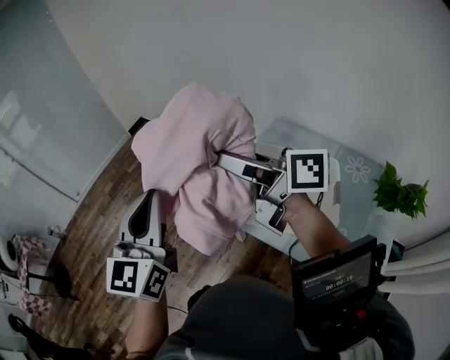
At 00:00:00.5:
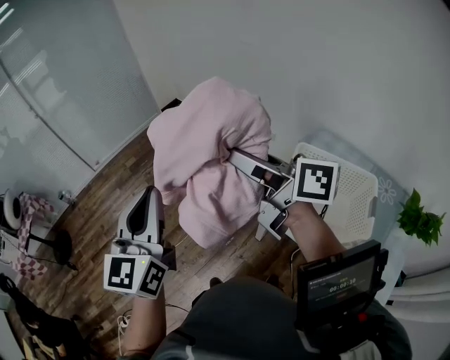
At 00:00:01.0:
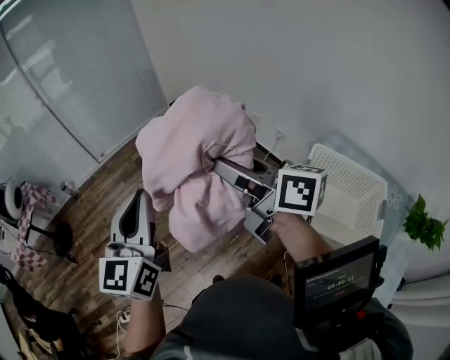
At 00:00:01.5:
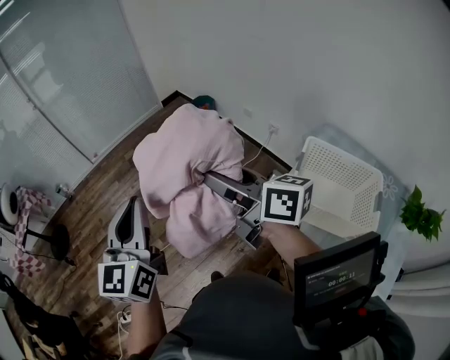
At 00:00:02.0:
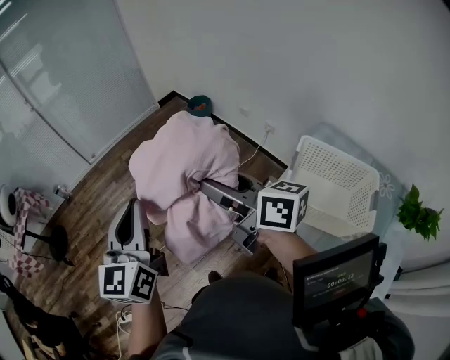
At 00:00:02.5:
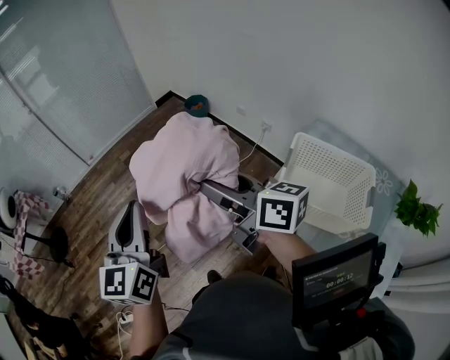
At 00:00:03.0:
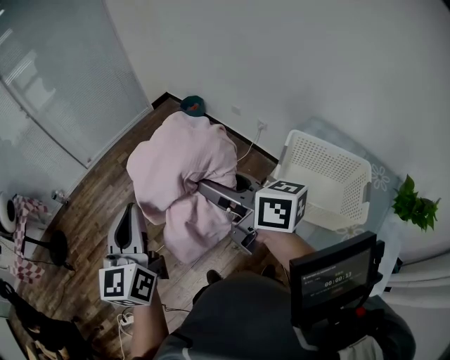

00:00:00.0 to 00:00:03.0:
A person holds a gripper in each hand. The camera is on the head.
00:00:00.0 to 00:00:01.5: Both grippers travel together to the left, approximately 25 cm.
00:00:01.5 to 00:00:03.0: Neither gripper changes place.

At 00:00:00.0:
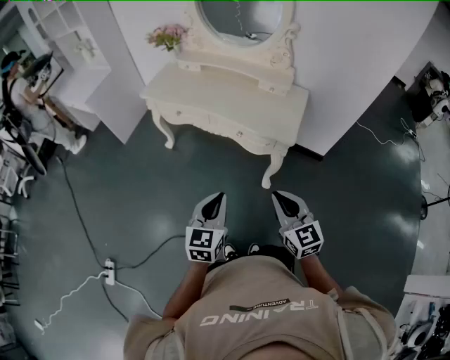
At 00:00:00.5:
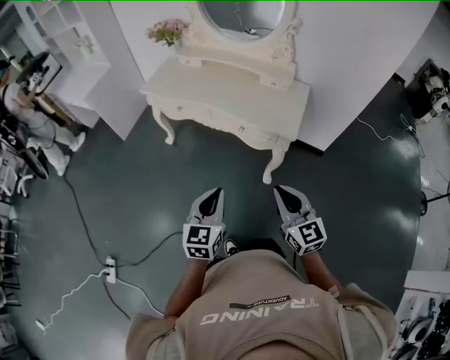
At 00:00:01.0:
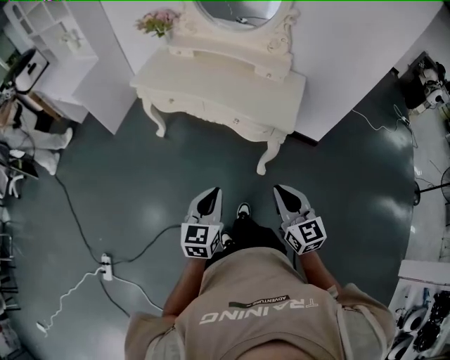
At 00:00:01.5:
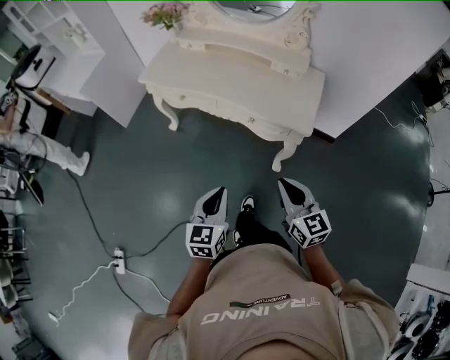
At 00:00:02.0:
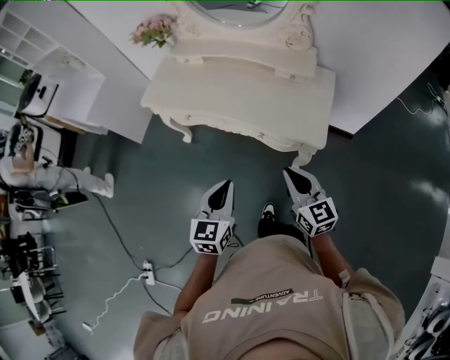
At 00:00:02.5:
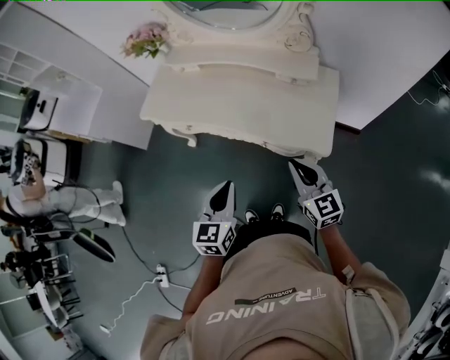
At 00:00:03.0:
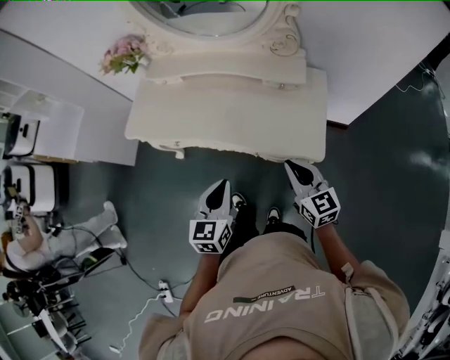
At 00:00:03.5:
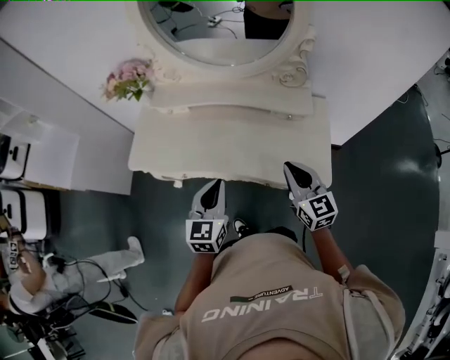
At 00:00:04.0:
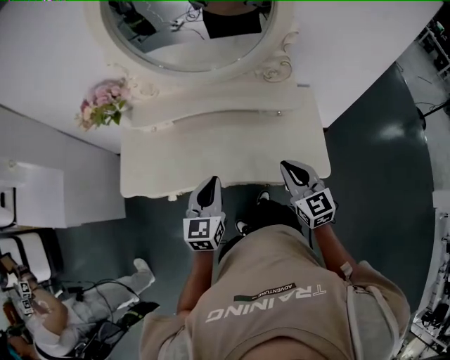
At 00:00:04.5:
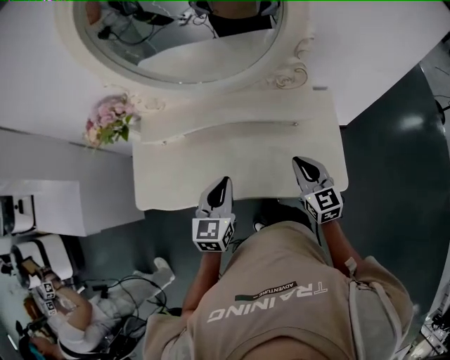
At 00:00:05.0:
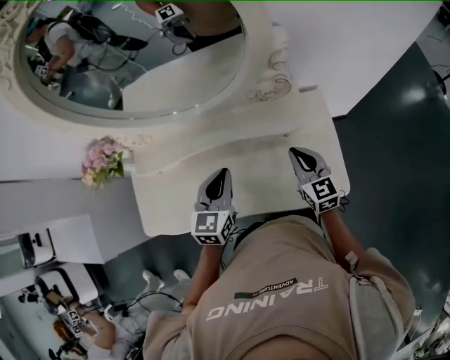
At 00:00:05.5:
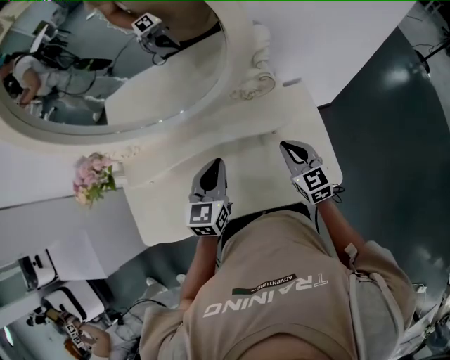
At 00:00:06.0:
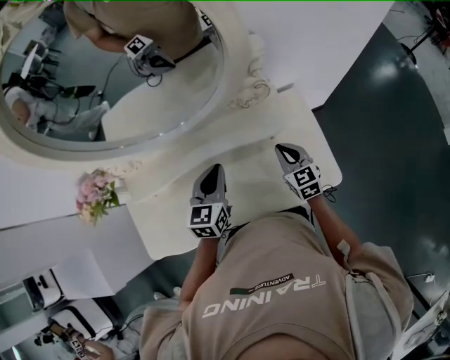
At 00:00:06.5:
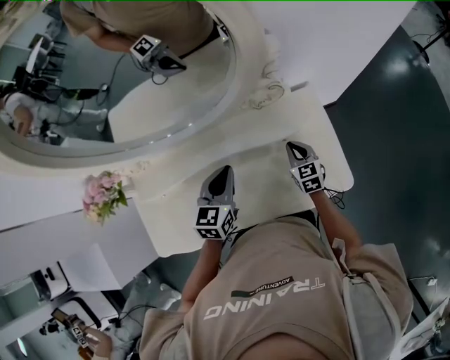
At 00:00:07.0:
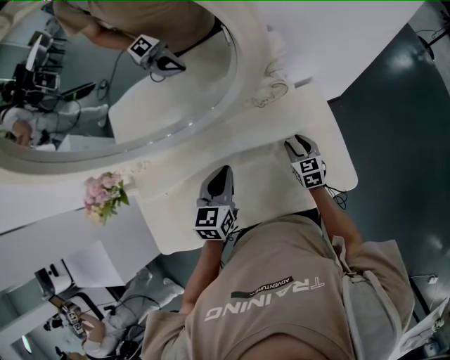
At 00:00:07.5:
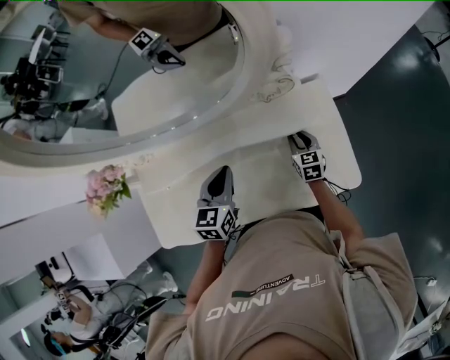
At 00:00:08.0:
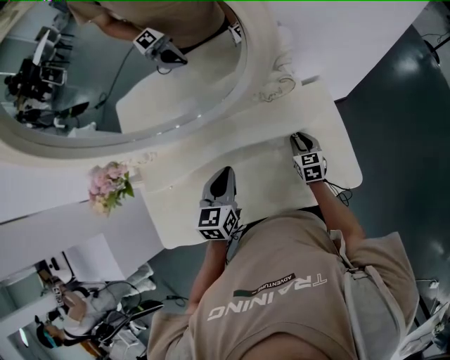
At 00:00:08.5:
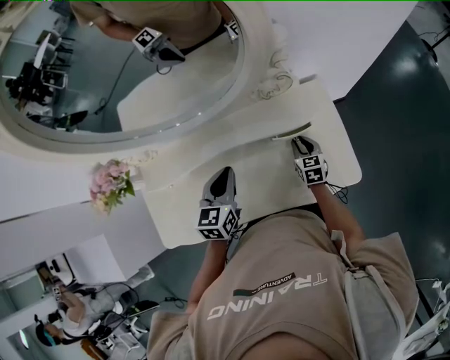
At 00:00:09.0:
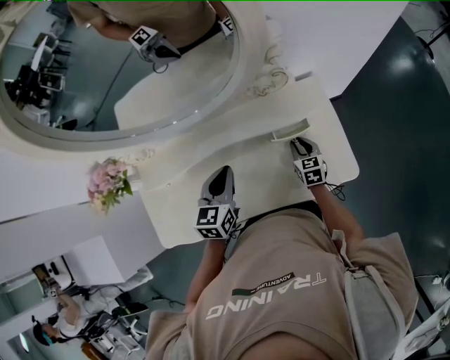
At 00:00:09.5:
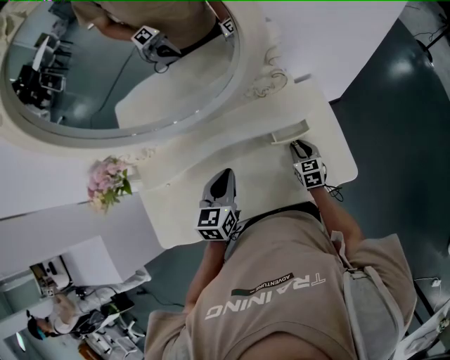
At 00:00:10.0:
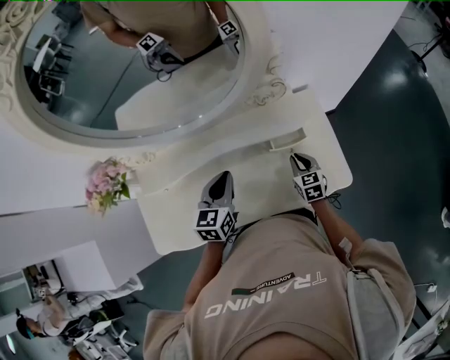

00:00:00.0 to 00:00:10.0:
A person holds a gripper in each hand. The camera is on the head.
00:00:00.0 to 00:00:02.0: Both grippers move forward, about 20 cm.
00:00:02.0 to 00:00:04.0: The two grippers go roughly 30 cm forward. The right gripper rotates about 20 degrees.
00:00:04.0 to 00:00:06.0: The right gripper shifts approximately 25 cm forward and downward. Meanwhile the left gripper travels forward by about 25 cm.
00:00:06.0 to 00:00:08.0: The right gripper heads downward, covering about 10 cm, and opens.
00:00:08.0 to 00:00:10.0: The right gripper moves backward, approximately 5 cm.

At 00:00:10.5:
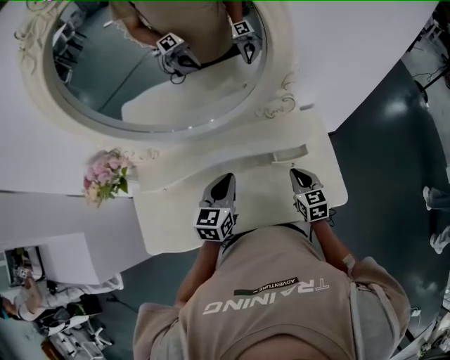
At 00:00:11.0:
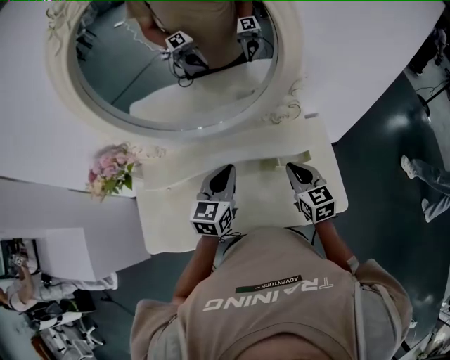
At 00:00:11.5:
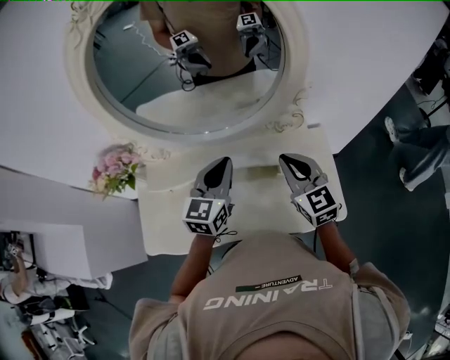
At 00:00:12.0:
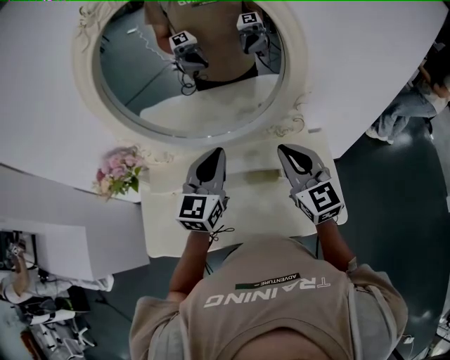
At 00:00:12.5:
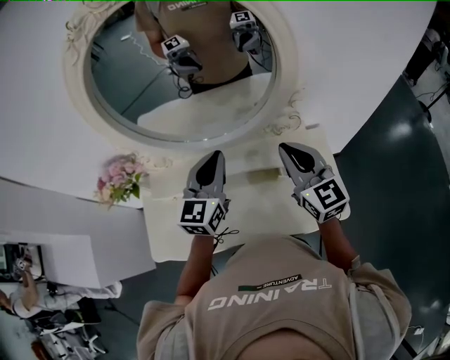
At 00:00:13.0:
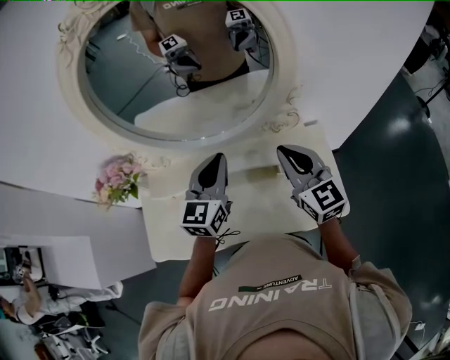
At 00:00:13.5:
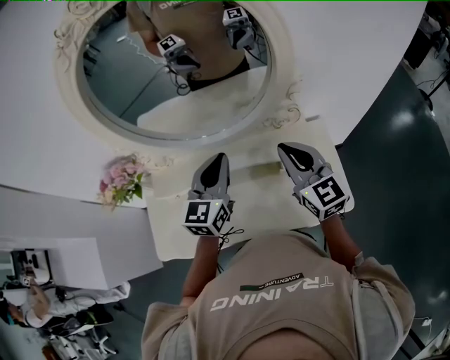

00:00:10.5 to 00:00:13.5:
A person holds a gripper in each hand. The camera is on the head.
00:00:10.5 to 00:00:12.0: The right gripper goes roughly 25 cm upward, and swivels some 30 degrees, while the left gripper goes some 15 cm upward, and turns by roughly 20 degrees.
00:00:12.0 to 00:00:13.5: The grippers move only a little.

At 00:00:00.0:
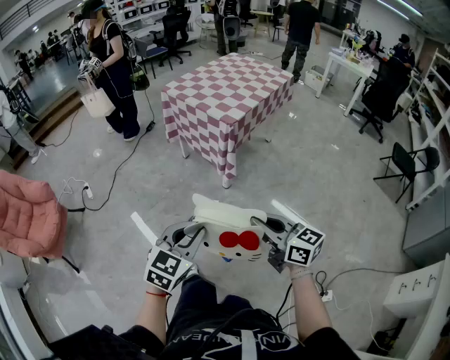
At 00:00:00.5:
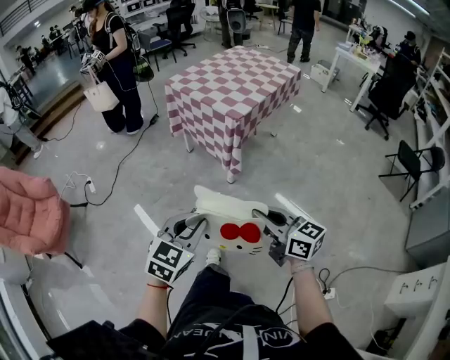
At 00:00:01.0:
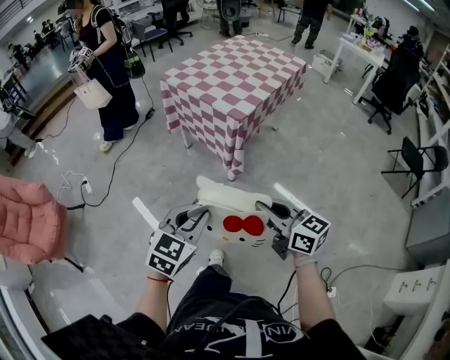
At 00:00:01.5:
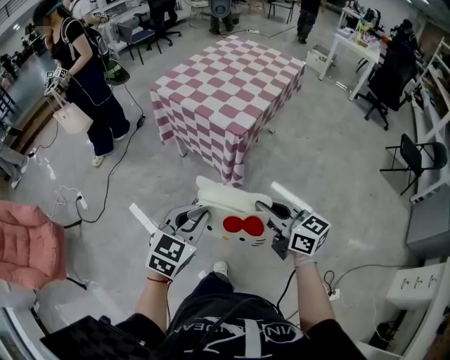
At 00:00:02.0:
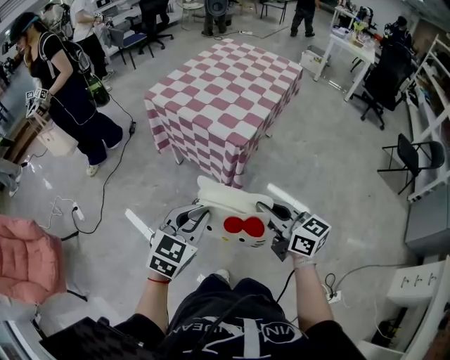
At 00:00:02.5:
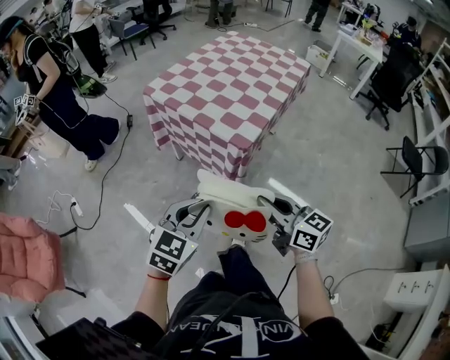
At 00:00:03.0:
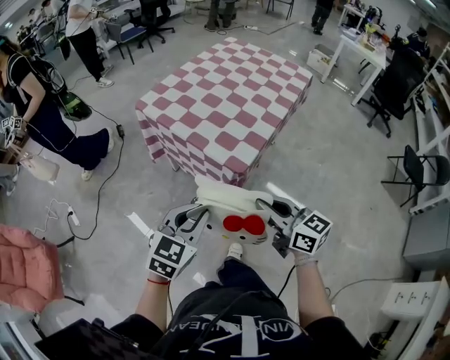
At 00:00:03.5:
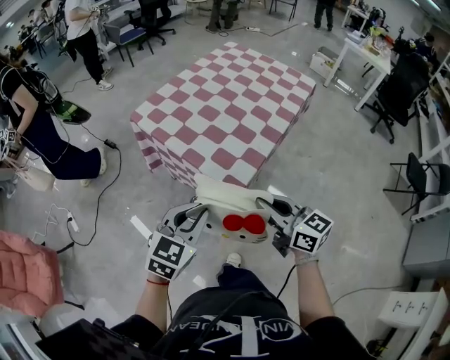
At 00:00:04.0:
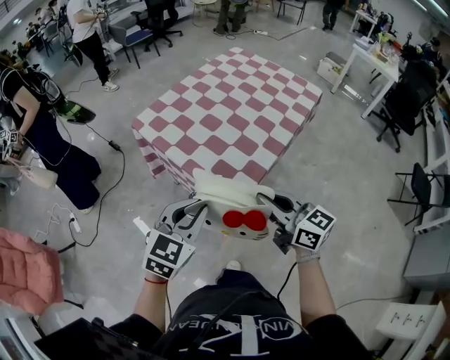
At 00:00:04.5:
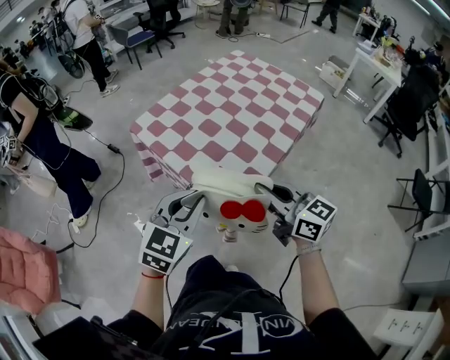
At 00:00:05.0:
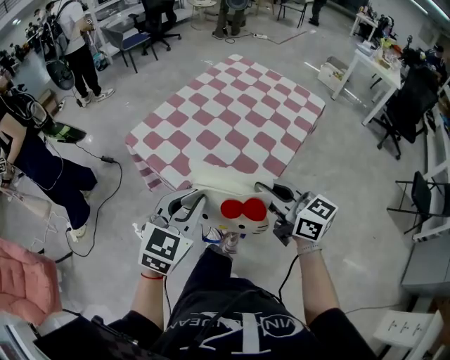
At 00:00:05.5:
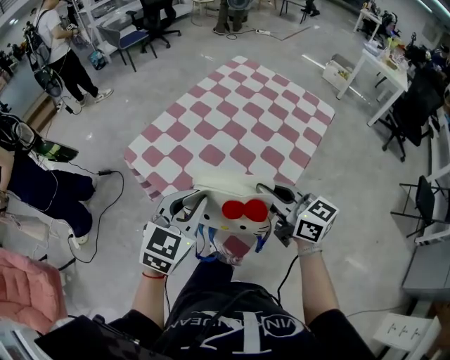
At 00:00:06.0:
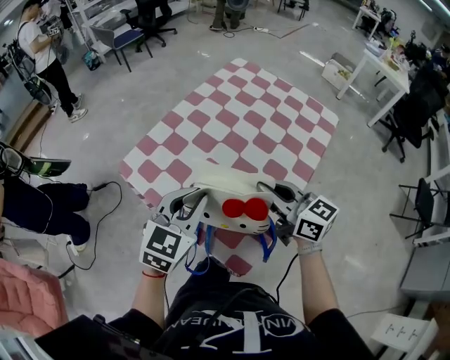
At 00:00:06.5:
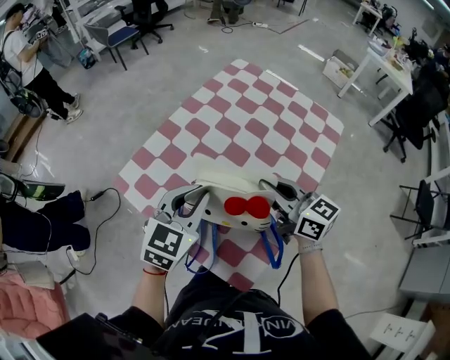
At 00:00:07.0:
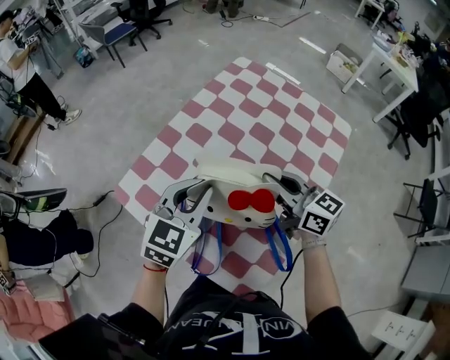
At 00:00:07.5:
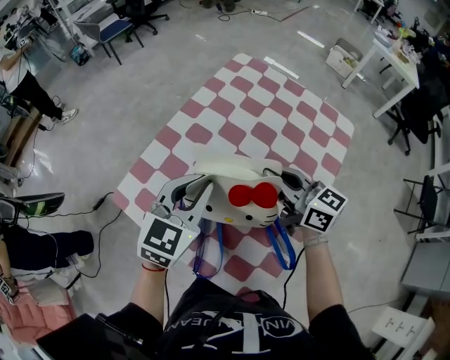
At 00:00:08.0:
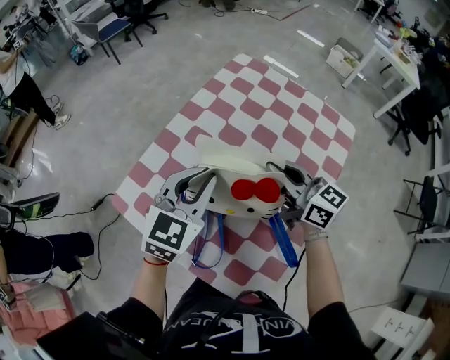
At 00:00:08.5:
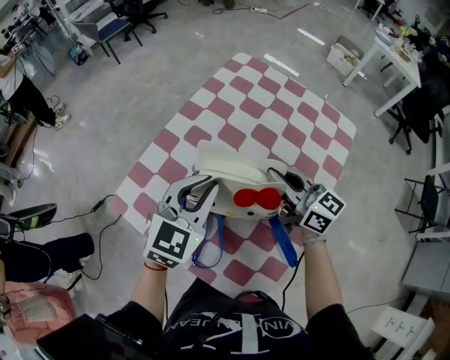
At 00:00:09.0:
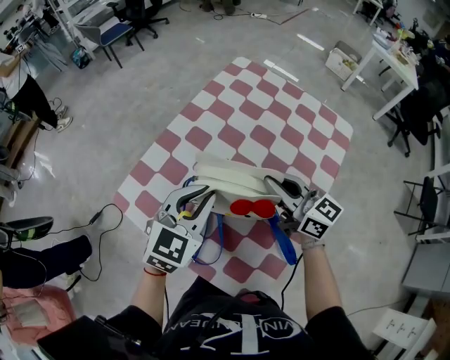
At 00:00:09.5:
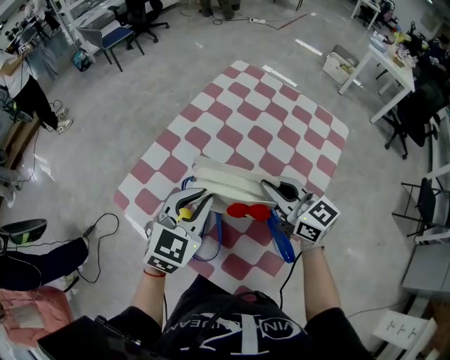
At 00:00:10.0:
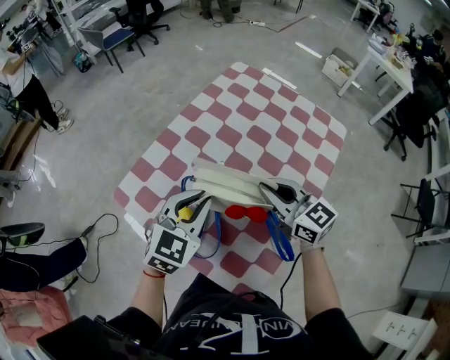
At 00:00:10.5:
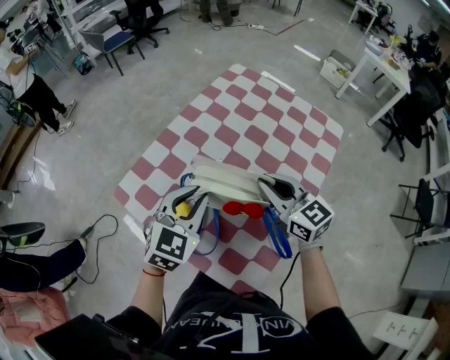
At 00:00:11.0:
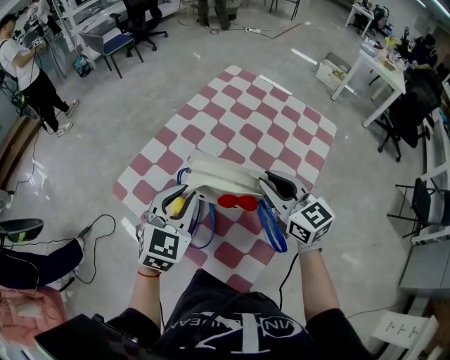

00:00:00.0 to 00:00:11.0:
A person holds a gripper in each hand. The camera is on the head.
00:00:00.0 to 00:00:02.0: The two grippers go some 30 cm forward.
00:00:02.0 to 00:00:03.5: The two grippers go approximately 20 cm forward.
00:00:03.5 to 00:00:05.5: Both grippers travel together forward, approximately 25 cm.
00:00:05.5 to 00:00:07.5: The grippers both shift forward by about 25 cm.
00:00:07.5 to 00:00:09.0: The grippers stay close to where they were, moving slightly.
00:00:09.0 to 00:00:11.0: The two grippers go approximately 5 cm backward. The right gripper swivels about 20 degrees.
